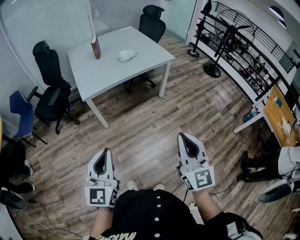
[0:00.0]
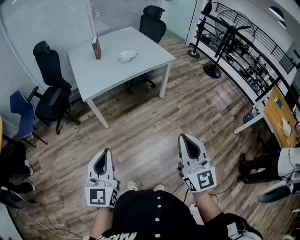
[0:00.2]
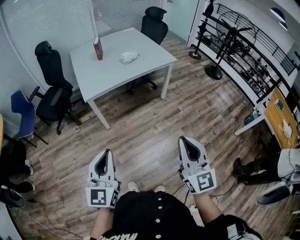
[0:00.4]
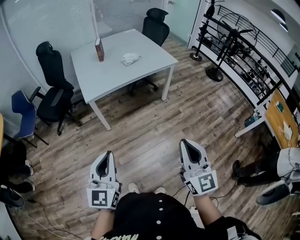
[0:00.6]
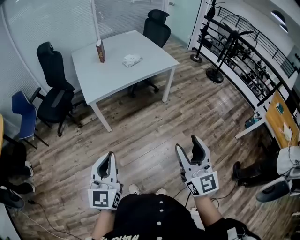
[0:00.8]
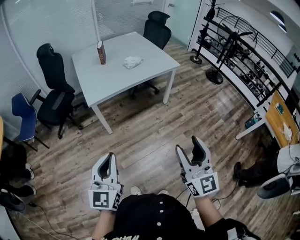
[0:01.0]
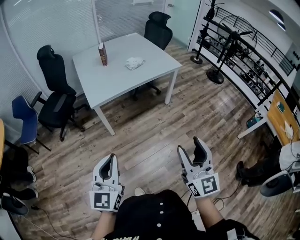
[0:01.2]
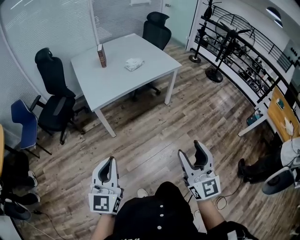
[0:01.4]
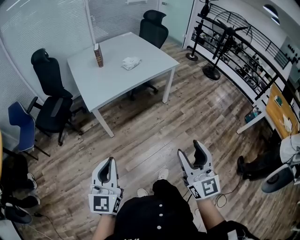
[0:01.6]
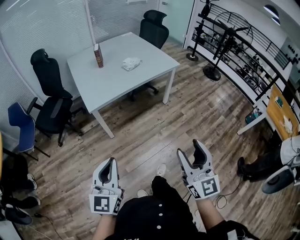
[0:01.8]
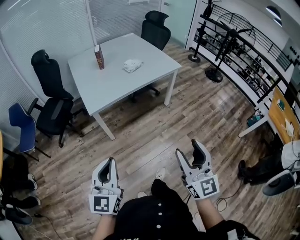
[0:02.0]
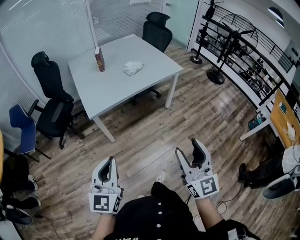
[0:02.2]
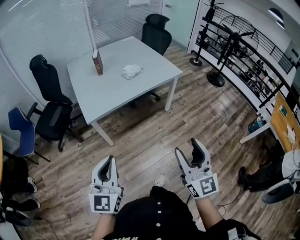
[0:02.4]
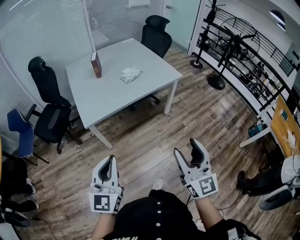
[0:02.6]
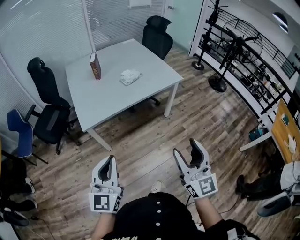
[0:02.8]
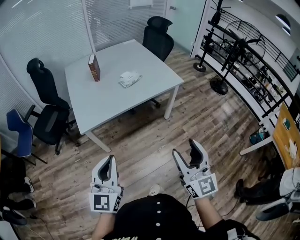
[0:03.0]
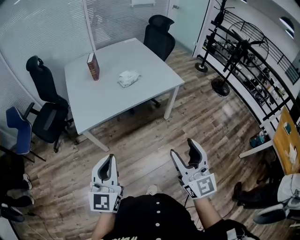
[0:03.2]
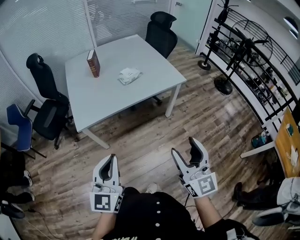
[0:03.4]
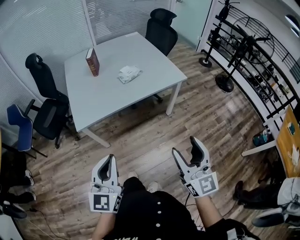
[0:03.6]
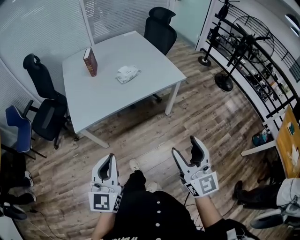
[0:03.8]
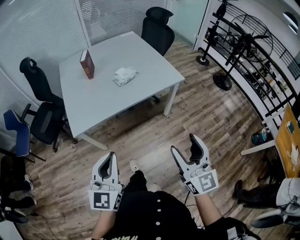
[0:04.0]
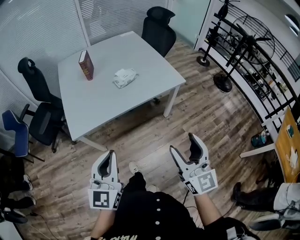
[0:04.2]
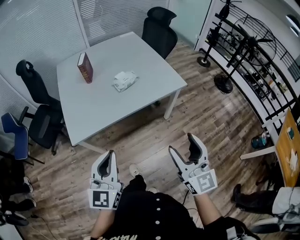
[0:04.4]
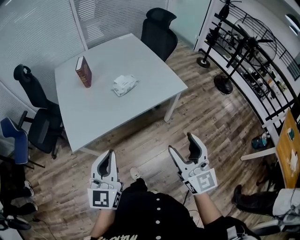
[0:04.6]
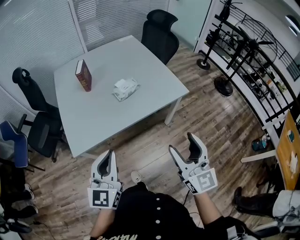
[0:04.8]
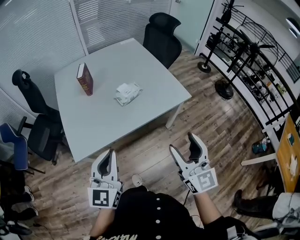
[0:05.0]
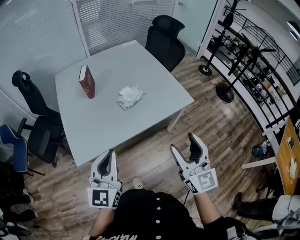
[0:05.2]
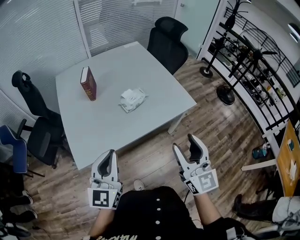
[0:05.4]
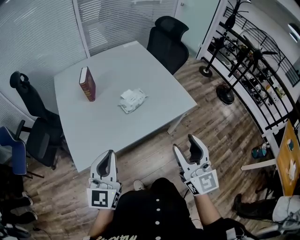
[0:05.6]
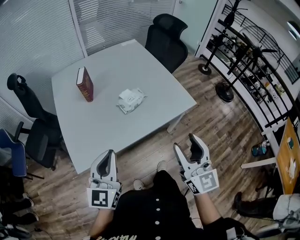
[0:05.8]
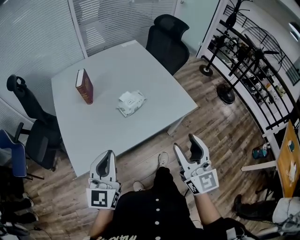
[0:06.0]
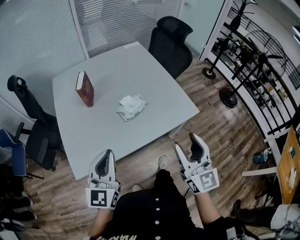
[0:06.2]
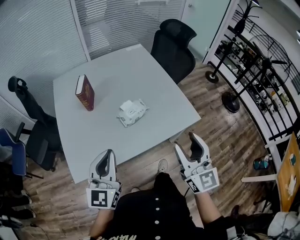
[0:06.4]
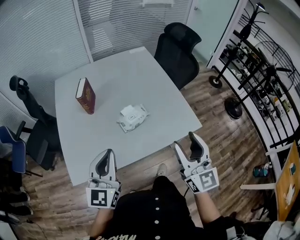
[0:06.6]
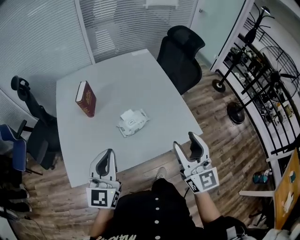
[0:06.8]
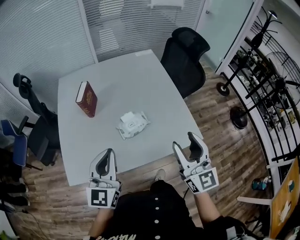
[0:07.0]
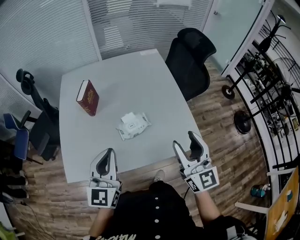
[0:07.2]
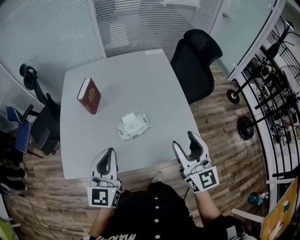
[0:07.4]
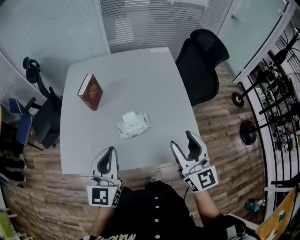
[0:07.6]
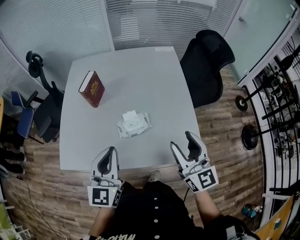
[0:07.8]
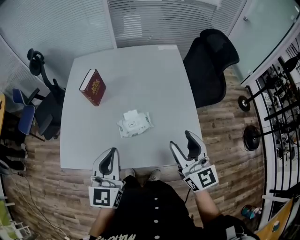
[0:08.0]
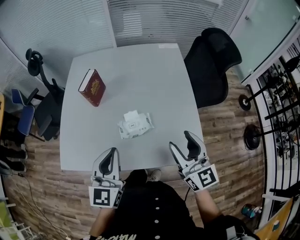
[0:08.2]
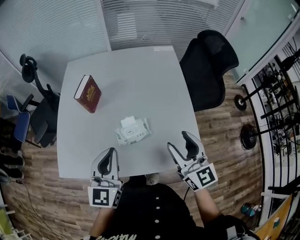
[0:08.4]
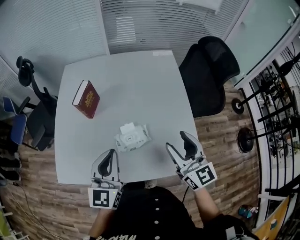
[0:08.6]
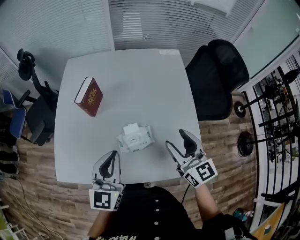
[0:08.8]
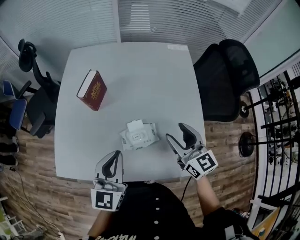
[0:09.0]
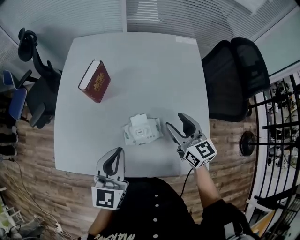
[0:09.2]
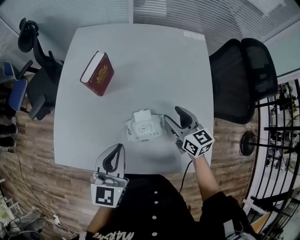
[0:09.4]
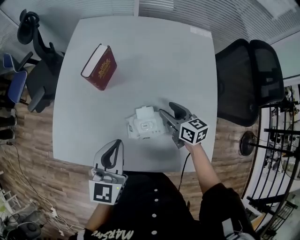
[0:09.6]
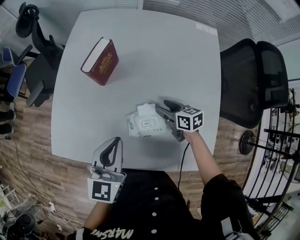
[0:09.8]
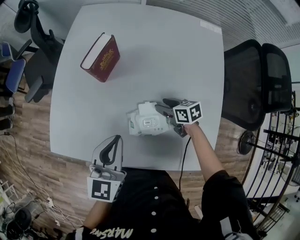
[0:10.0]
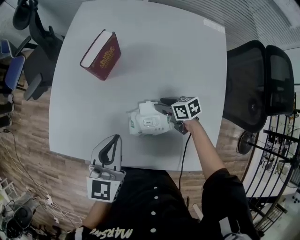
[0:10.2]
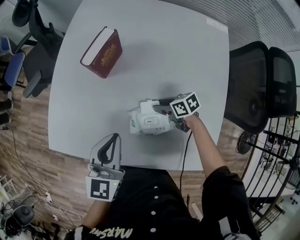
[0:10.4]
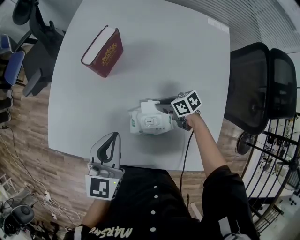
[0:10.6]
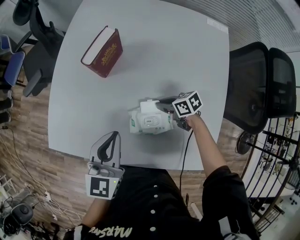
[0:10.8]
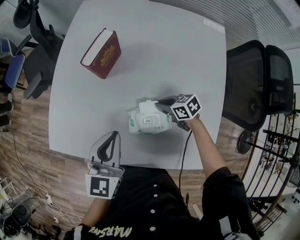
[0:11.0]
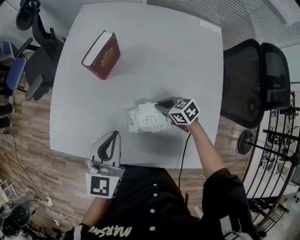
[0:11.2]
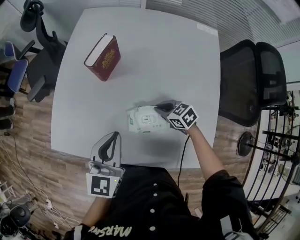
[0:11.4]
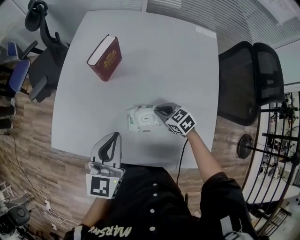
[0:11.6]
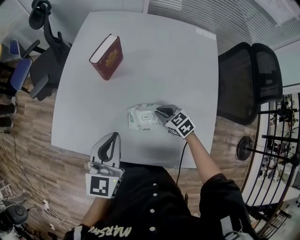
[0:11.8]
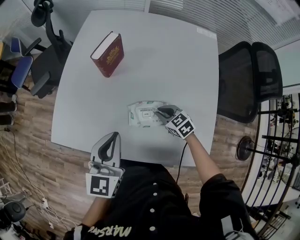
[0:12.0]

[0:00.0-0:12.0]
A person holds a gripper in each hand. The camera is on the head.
0:00.0 to 0:01.6: Both grippers move to the left, some 5 cm. The right gripper opens.
0:01.6 to 0:03.0: The right gripper shifts approximately 20 cm forward. Meanwhile the left gripper shifts approximately 20 cm forward and to the right.
0:03.0 to 0:04.4: Both grippers move forward, approximately 15 cm.
0:04.4 to 0:06.0: The grippers both shift forward by roughly 20 cm.
0:06.0 to 0:07.6: Both grippers travel together forward and to the right, approximately 25 cm. The left gripper changes its angle by about 20 degrees; the right gripper changes its angle by approximately 20 degrees.
0:07.6 to 0:09.0: The right gripper is displaced forward and downward by some 20 cm, and rotates roughly 20 degrees. Meanwhile the left gripper moves forward, some 10 cm.
0:09.0 to 0:10.4: The right gripper shifts approximately 30 cm downward, and tilts its fingers about 30 degrees downward. The left gripper goes some 10 cm downward, and turns by roughly 20 degrees.
0:10.4 to 0:12.0: The right gripper shifts approximately 10 cm backward and upward, turns by approximately 40 degrees, and closes. The left gripper moves upward, approximately 5 cm.

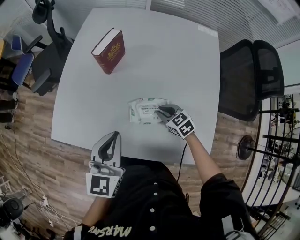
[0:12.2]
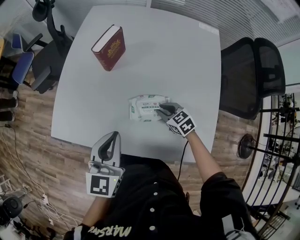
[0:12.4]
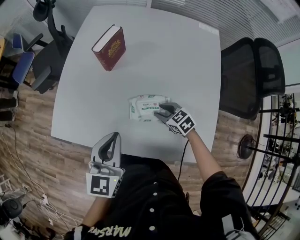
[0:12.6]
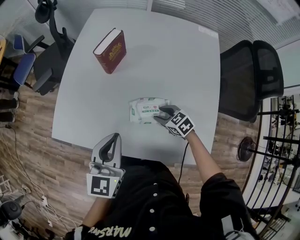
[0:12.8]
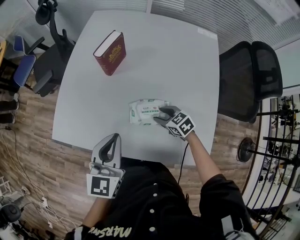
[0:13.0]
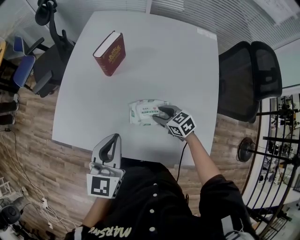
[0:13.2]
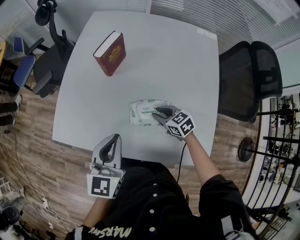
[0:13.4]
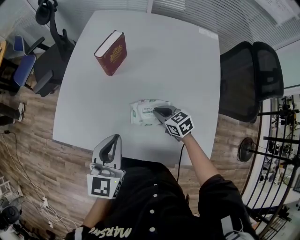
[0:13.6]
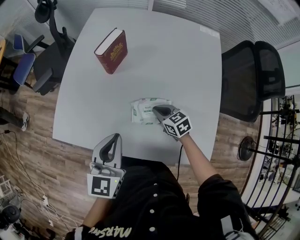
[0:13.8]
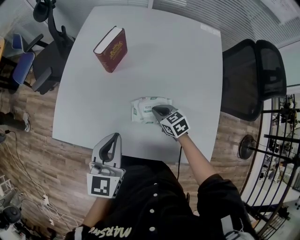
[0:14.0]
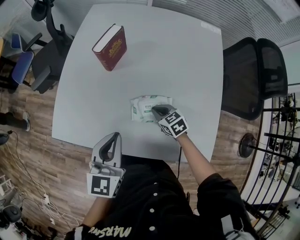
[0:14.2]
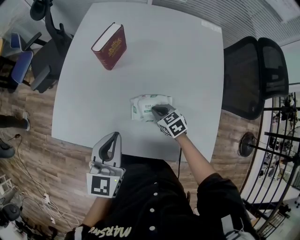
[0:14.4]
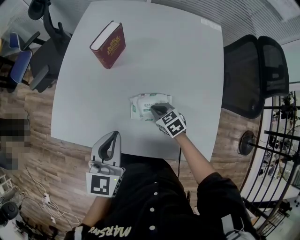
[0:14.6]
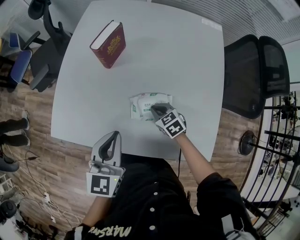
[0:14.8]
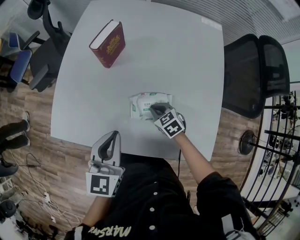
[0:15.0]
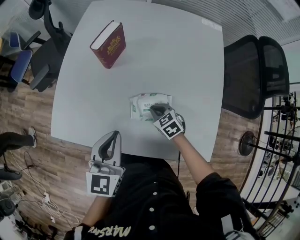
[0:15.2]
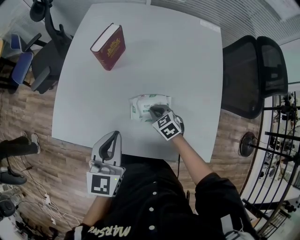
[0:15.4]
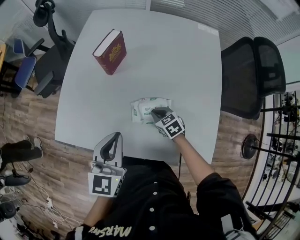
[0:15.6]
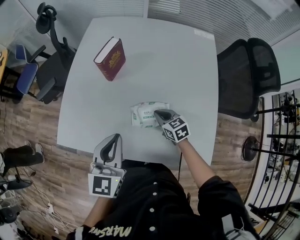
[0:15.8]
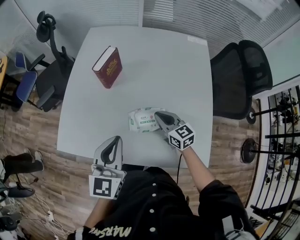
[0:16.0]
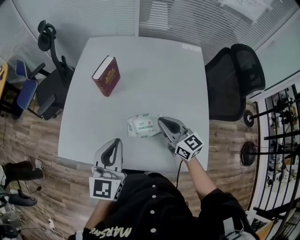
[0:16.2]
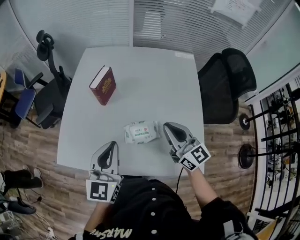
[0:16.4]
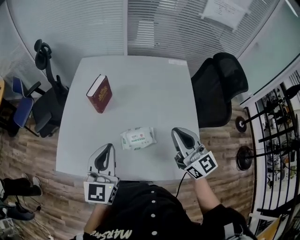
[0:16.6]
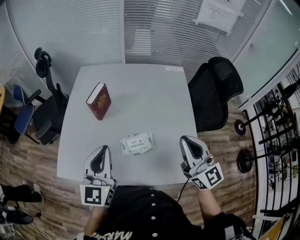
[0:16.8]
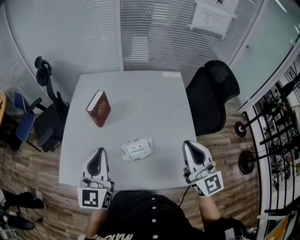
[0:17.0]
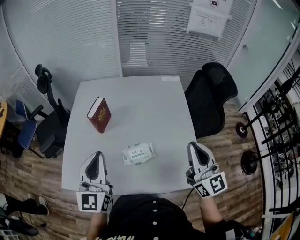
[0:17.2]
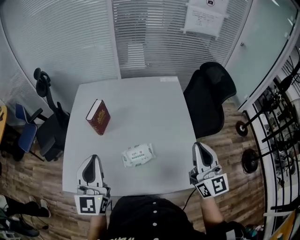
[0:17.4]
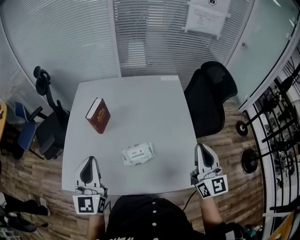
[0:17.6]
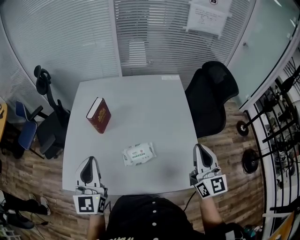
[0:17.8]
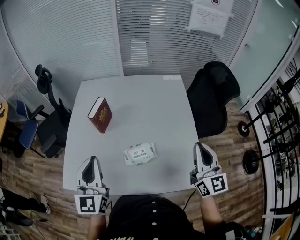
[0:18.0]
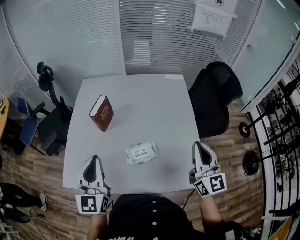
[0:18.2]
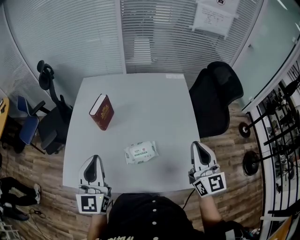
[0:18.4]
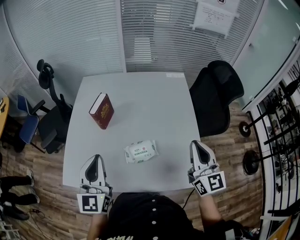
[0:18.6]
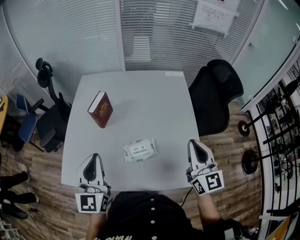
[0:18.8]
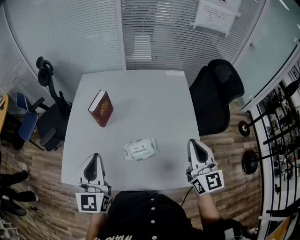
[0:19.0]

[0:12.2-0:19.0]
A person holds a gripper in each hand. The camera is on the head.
0:12.2 to 0:13.6: The right gripper opens, then closes once more.
0:13.6 to 0:15.0: The grippers make only small movements.
0:15.0 to 0:16.2: The left gripper is displaced upward by approximately 5 cm; the right gripper heads upward, covering about 20 cm, and tilts its fingers some 40 degrees upward.
0:16.2 to 0:17.6: The right gripper moves upward, to the right and backward, approximately 25 cm, and rotates approximately 40 degrees; the left gripper is displaced upward by some 10 cm.
0:17.6 to 0:19.0: The right gripper moves approximately 5 cm.

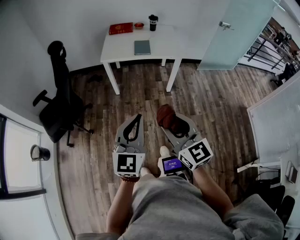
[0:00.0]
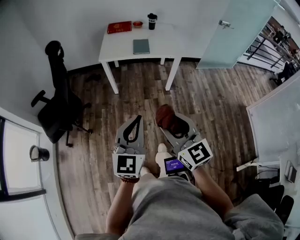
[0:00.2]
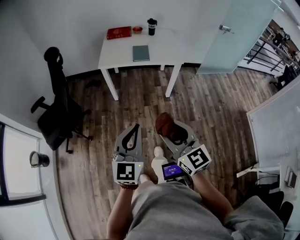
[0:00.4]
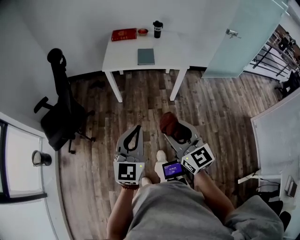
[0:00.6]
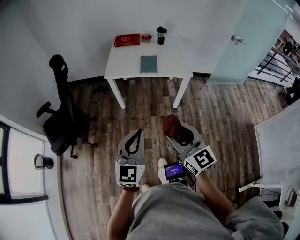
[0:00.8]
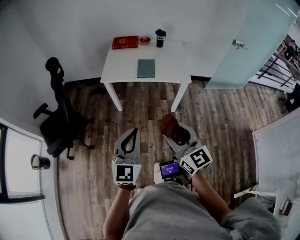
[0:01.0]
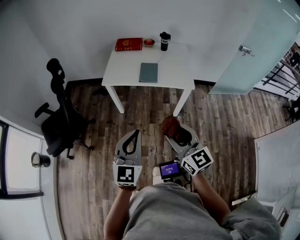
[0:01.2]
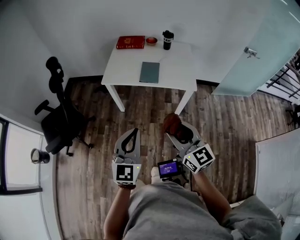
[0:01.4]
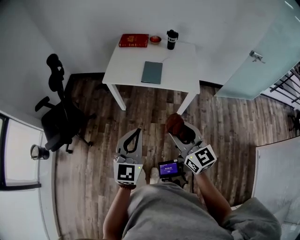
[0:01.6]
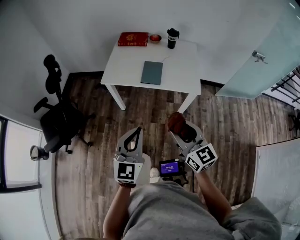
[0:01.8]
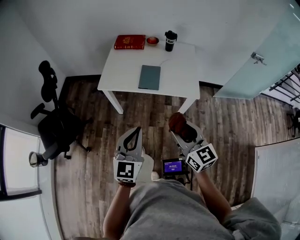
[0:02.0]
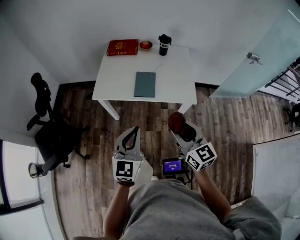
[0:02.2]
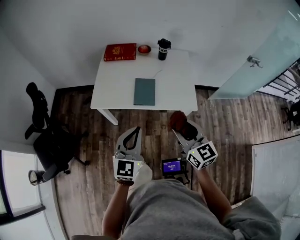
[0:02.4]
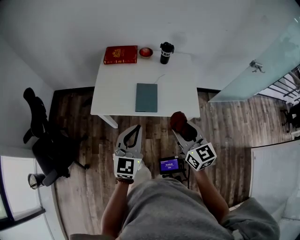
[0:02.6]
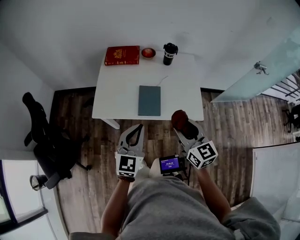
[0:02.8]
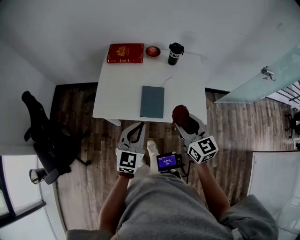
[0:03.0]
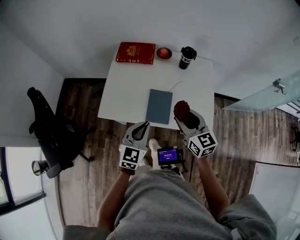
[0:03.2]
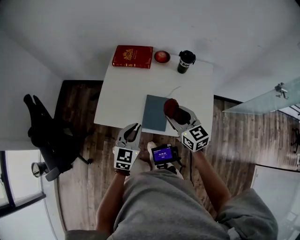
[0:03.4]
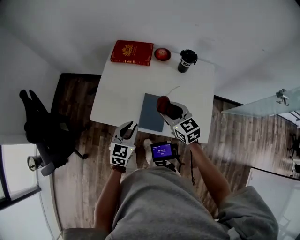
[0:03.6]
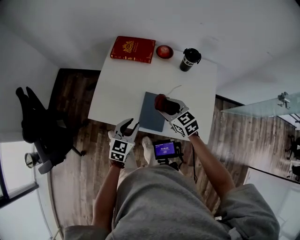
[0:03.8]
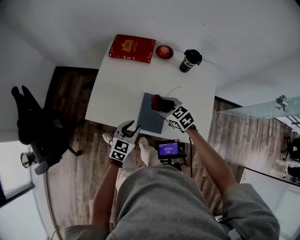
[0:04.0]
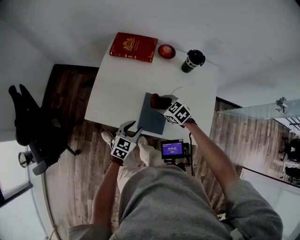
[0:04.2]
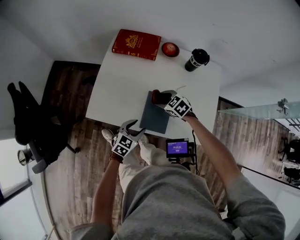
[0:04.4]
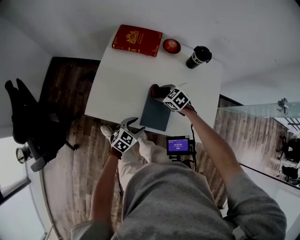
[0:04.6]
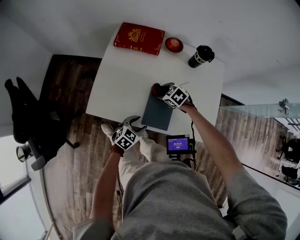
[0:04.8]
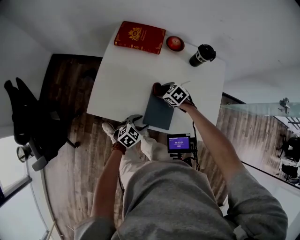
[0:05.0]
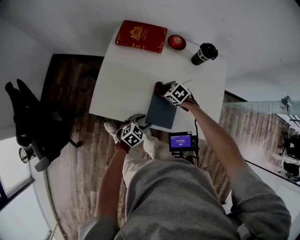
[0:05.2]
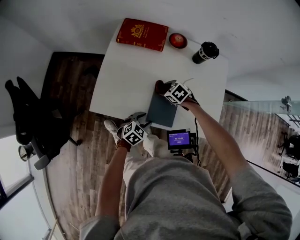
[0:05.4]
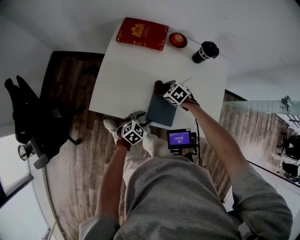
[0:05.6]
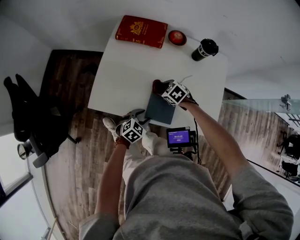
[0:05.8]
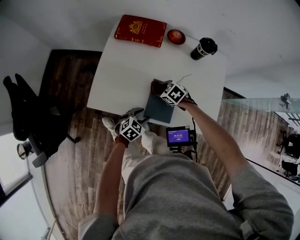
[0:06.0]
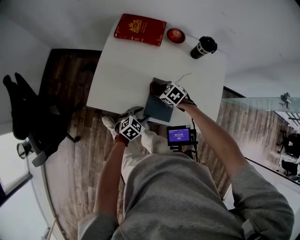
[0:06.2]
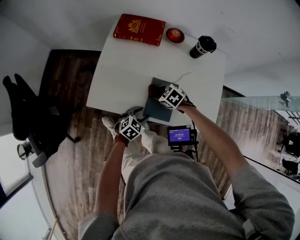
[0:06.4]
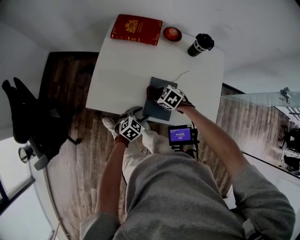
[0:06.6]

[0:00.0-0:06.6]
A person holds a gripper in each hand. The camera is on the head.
0:00.0 to 0:01.6: The right gripper is displaced forward and to the right by some 35 cm. The left gripper shifts some 30 cm forward.
0:01.6 to 0:03.2: Both grippers are carried forward, approximately 40 cm.
0:03.2 to 0:05.0: The grippers both shift downward by approximately 30 cm. The right gripper angles its fingers downward, by approximately 50 degrees; the left gripper turns by approximately 40 degrees, and opens.
0:05.0 to 0:06.6: The right gripper moves about 5 cm.
